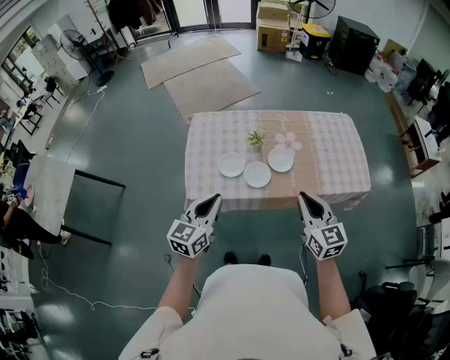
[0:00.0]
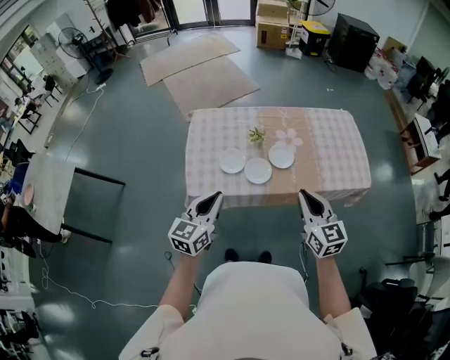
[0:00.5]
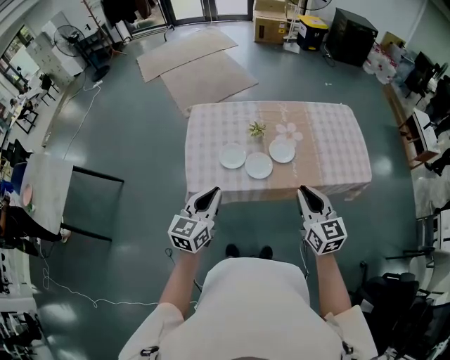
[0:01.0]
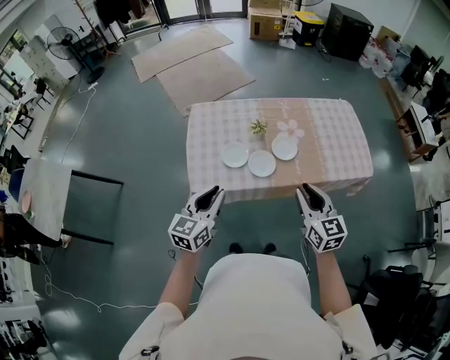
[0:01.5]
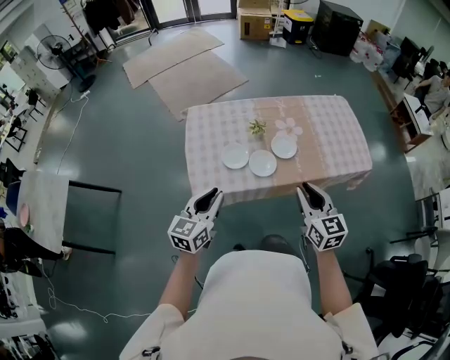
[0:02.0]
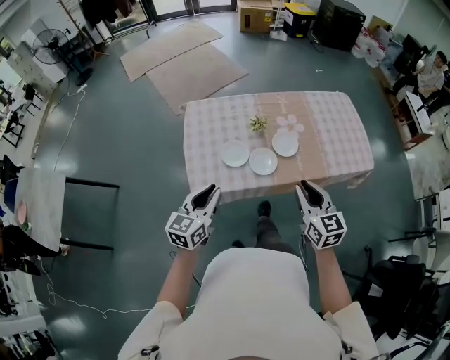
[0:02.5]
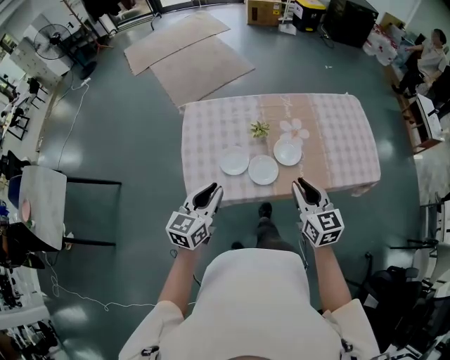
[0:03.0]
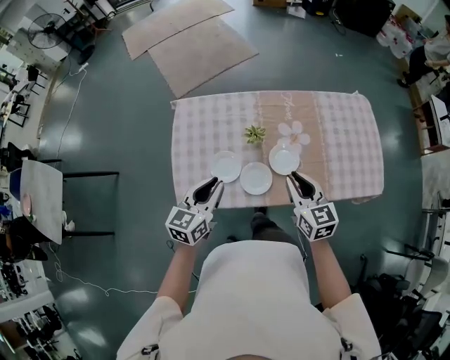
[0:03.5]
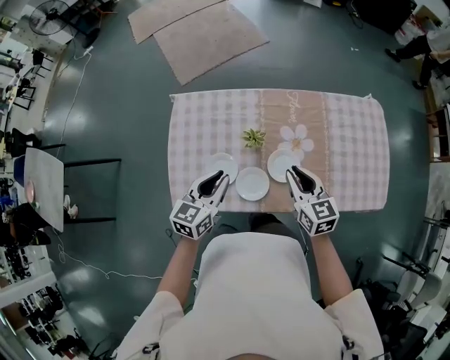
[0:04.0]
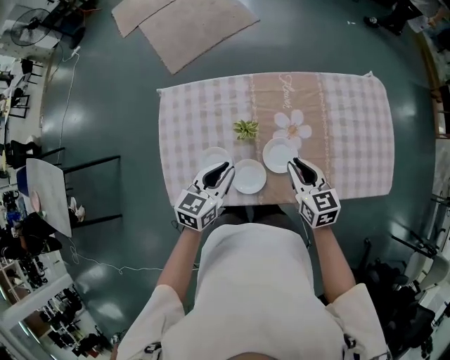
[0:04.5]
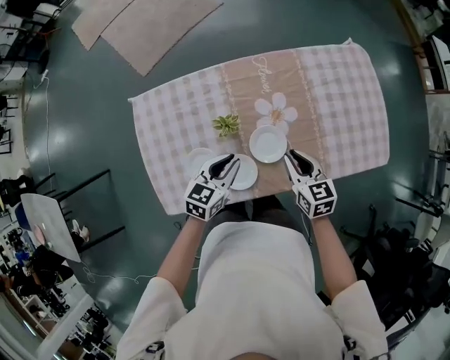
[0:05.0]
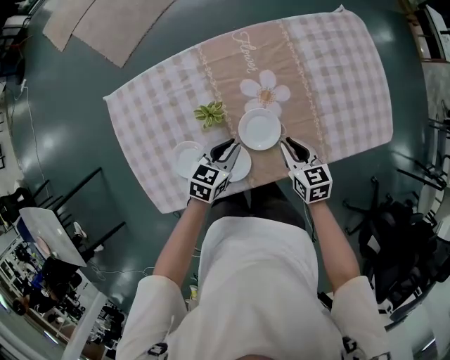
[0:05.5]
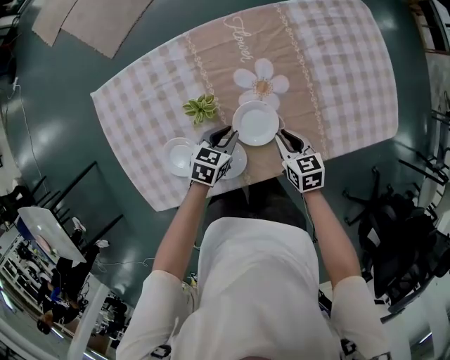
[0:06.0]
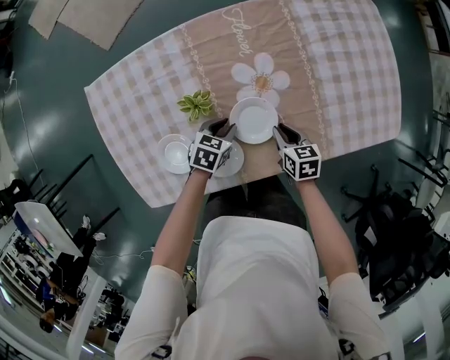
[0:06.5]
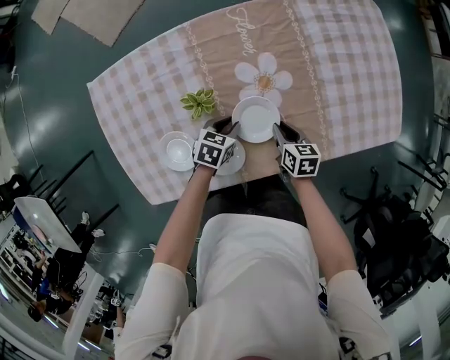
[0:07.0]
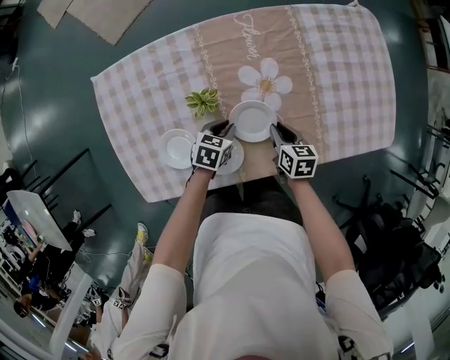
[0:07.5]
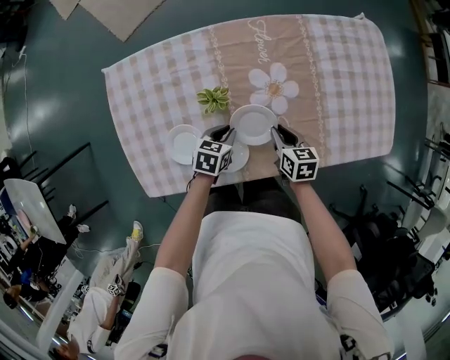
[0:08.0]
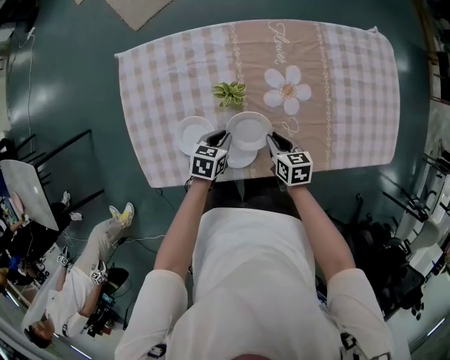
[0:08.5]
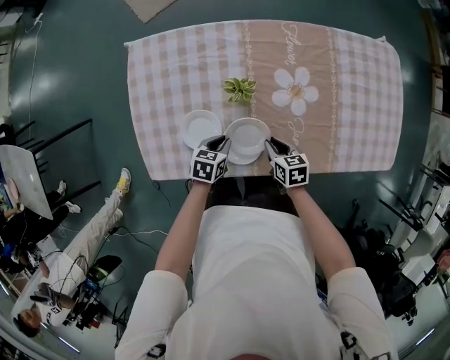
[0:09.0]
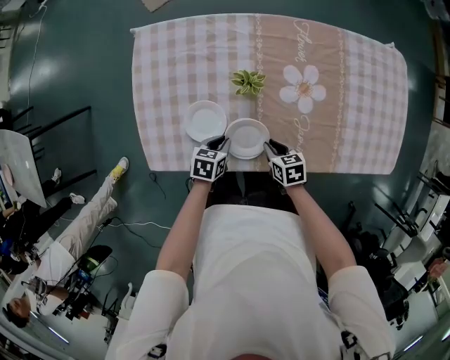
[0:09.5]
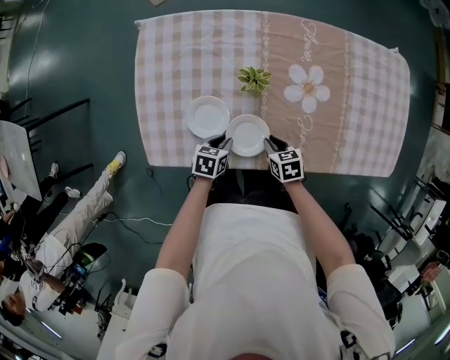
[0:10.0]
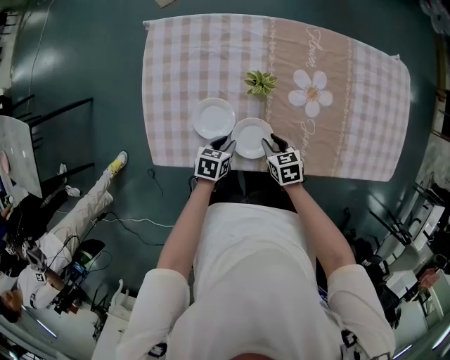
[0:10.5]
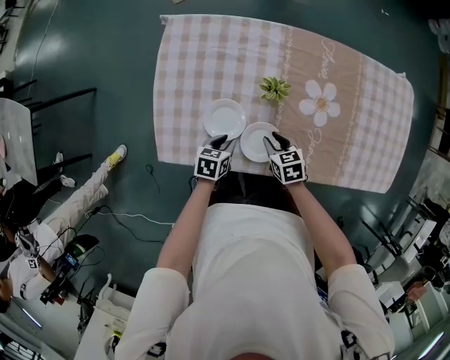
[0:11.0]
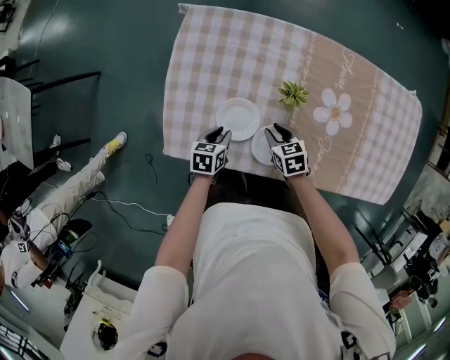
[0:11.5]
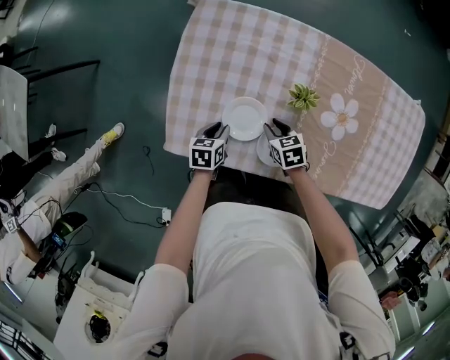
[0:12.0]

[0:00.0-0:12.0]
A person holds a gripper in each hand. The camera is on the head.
0:00.0 to 0:02.0: Both grippers travel together to the left, approximately 5 cm.
0:02.0 to 0:04.0: Both grippers move forward, approximately 30 cm.
0:04.0 to 0:06.0: The left gripper heads downward and to the right, covering approximately 35 cm, and rotates roughly 40 degrees. The right gripper is displaced downward by some 25 cm, and rotates approximately 30 degrees.
0:06.0 to 0:08.0: There are only small adjustments of the grippers.
0:08.0 to 0:10.0: The right gripper goes some 15 cm to the left and backward, and swivels approximately 30 degrees. Meanwhile the left gripper shifts some 15 cm backward and to the left.
0:10.0 to 0:12.0: The right gripper moves to the left and forward, approximately 15 cm. The left gripper travels to the left by about 15 cm, and changes its angle by approximately 20 degrees.

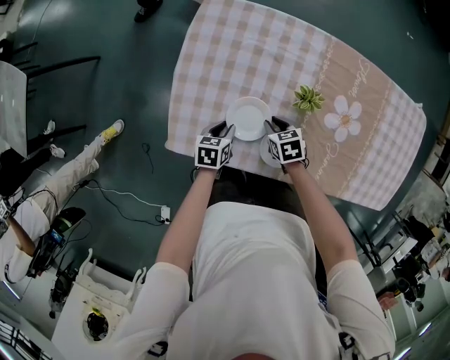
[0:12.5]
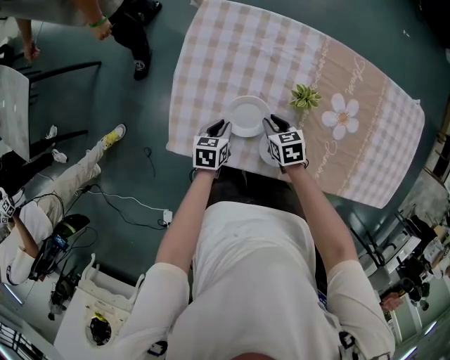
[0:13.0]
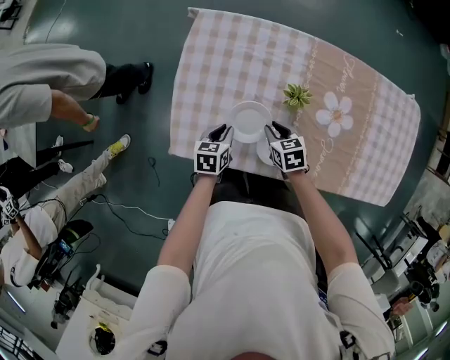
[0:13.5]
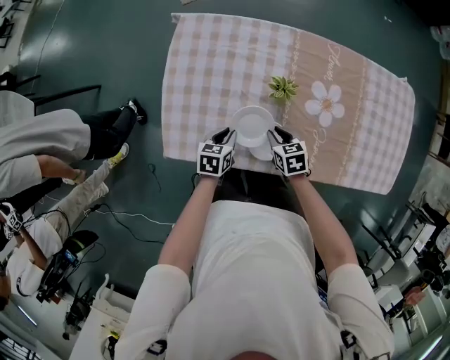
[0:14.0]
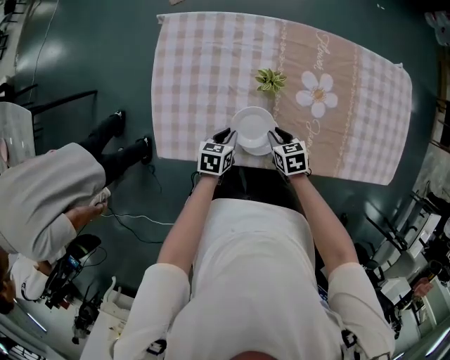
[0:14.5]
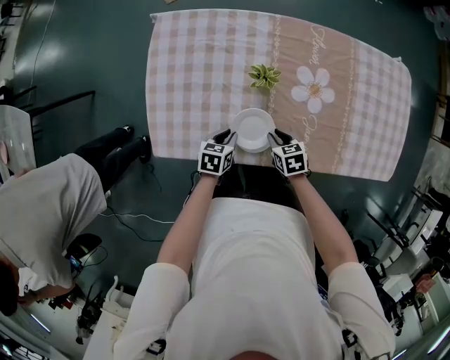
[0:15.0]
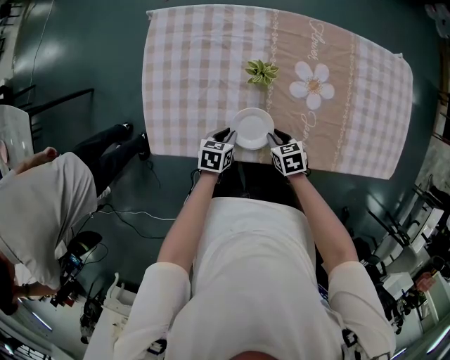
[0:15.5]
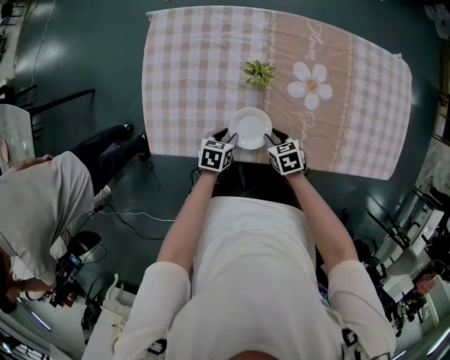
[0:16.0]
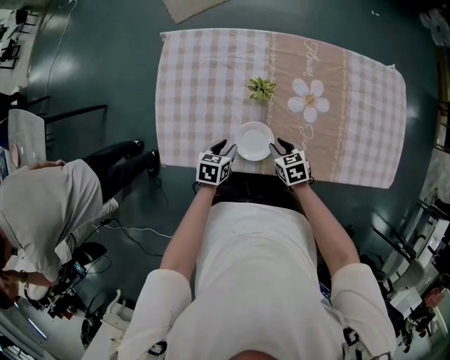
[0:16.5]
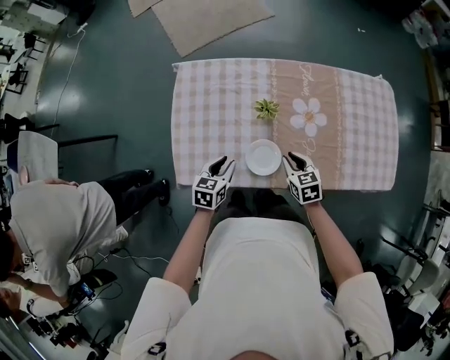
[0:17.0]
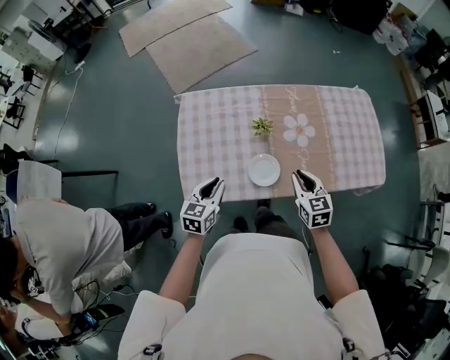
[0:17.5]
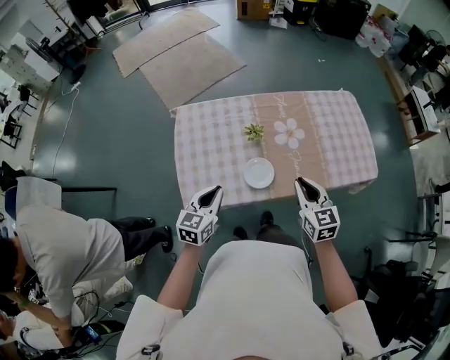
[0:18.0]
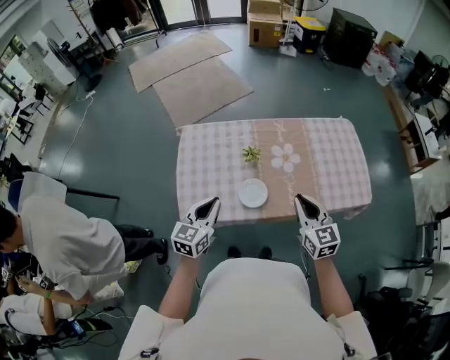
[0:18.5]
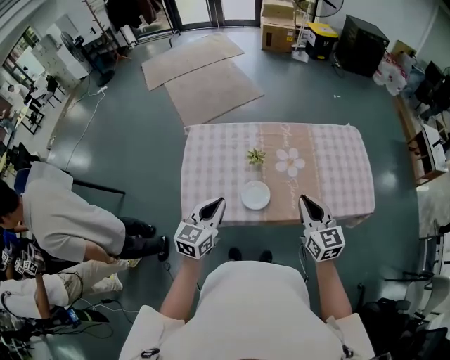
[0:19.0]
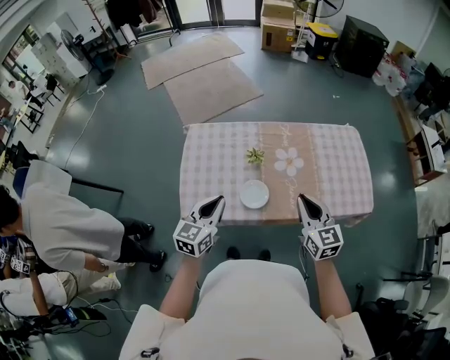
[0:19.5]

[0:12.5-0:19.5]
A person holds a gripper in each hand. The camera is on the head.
0:12.5 to 0:14.5: The right gripper heads to the right and backward, covering roughly 15 cm, while the left gripper heads to the right, covering approximately 10 cm.
0:14.5 to 0:16.0: The left gripper ends up roughly 5 cm from where it was.
0:16.0 to 0:17.5: The right gripper travels upward by some 25 cm, and swivels approximately 40 degrees. The left gripper heads upward and to the left, covering some 30 cm, and changes its angle by approximately 40 degrees.
0:17.5 to 0:19.5: The right gripper is displaced upward and backward by approximately 20 cm, while the left gripper moves upward and to the right, some 15 cm.

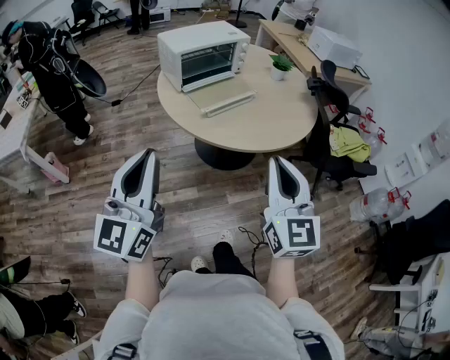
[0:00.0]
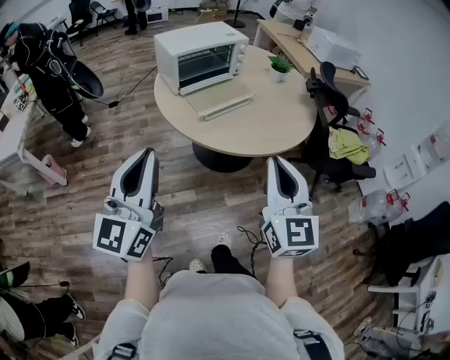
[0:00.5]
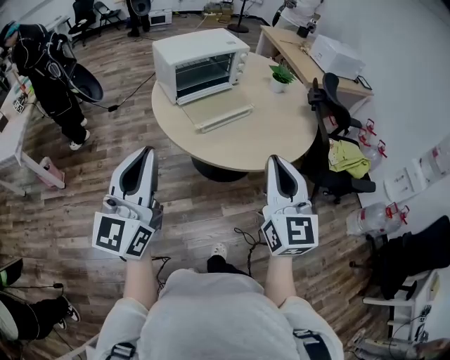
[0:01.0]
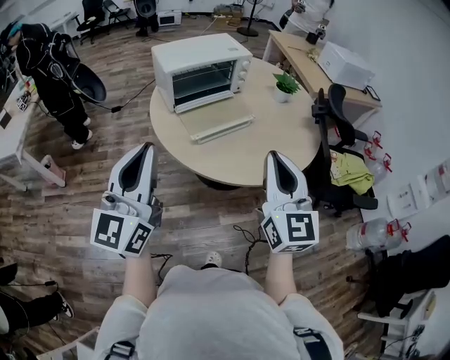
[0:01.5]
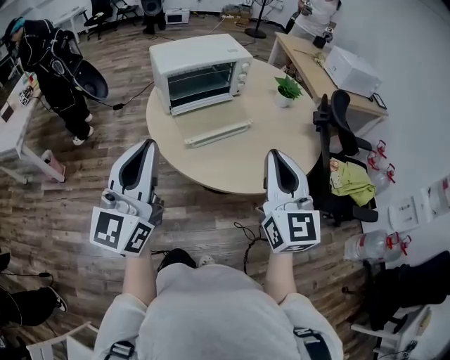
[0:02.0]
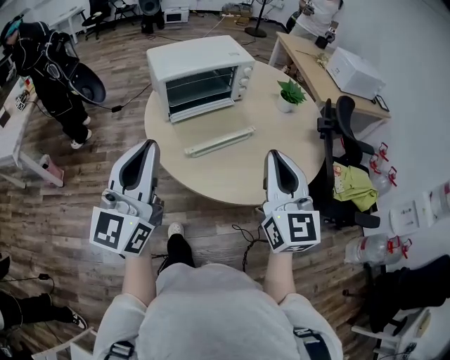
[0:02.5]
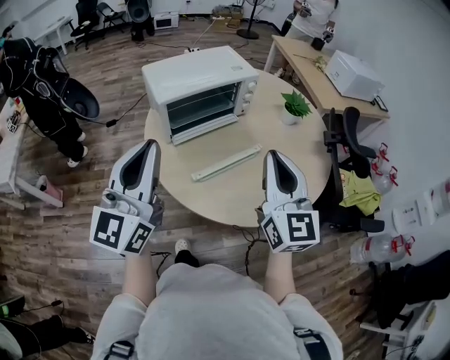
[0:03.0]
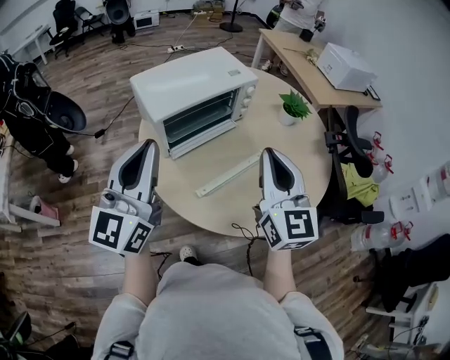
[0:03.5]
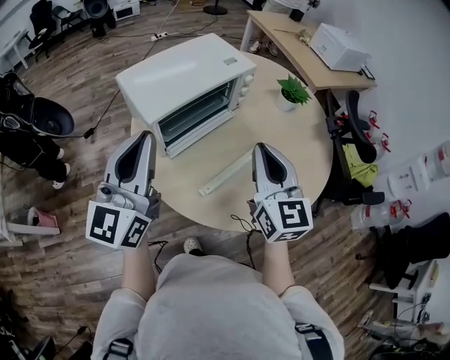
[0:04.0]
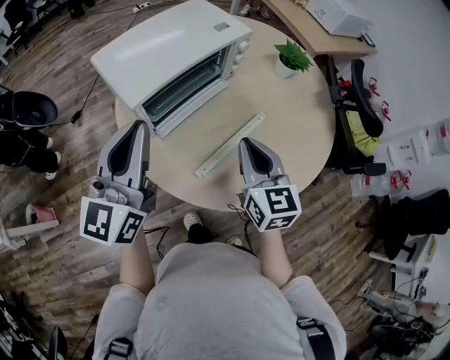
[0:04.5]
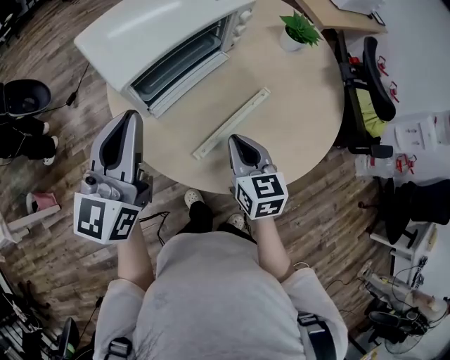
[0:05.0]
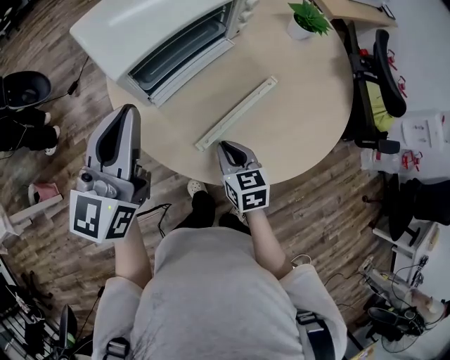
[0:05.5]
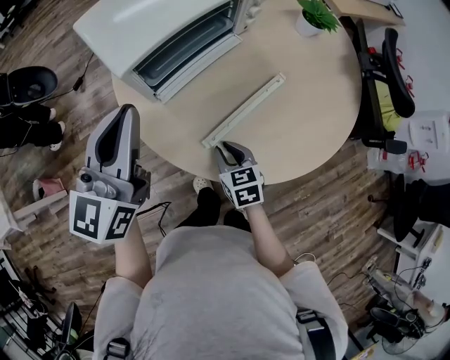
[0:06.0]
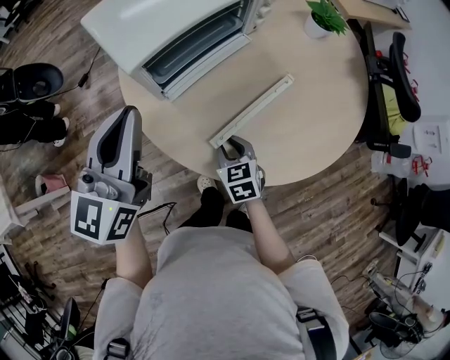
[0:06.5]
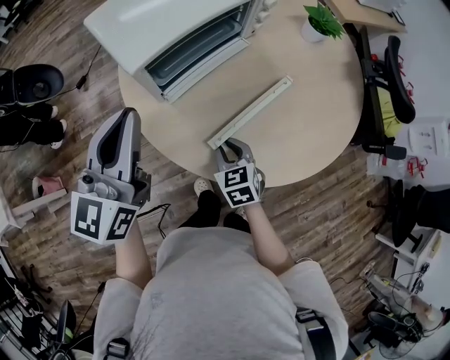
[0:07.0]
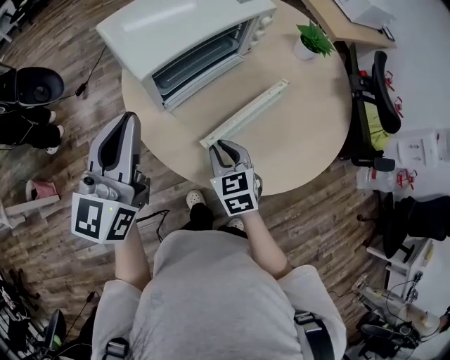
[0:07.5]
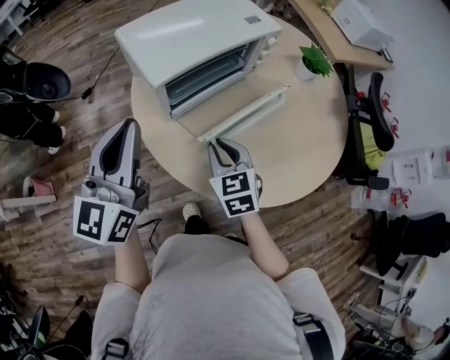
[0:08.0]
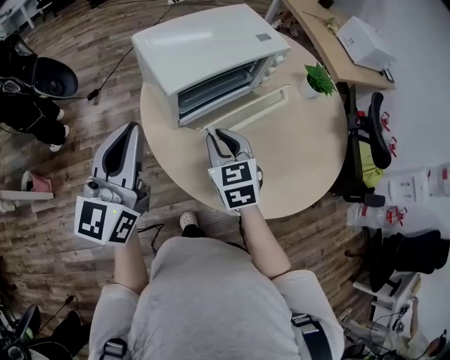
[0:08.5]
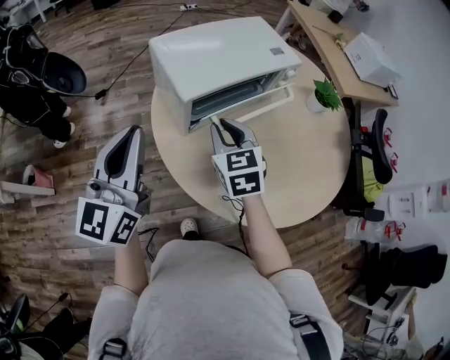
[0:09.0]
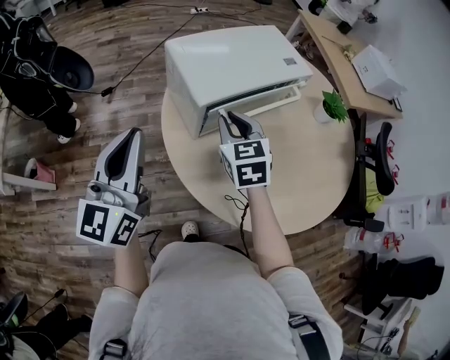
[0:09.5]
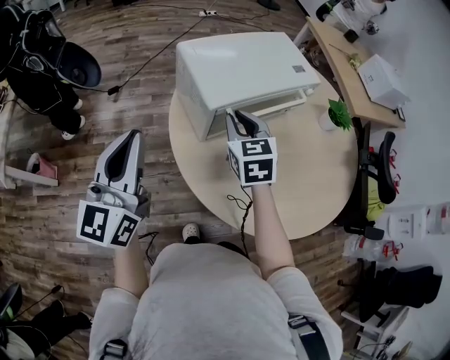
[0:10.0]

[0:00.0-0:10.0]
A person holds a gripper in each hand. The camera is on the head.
0:00.0 to 0:02.0: The right gripper travels forward by approximately 20 cm, while the left gripper travels forward and to the right by roughly 20 cm.
0:02.0 to 0:04.0: The two grippers go about 30 cm forward and to the left.
0:04.0 to 0:06.0: The left gripper goes about 10 cm downward. Meanwhile the right gripper shifts some 35 cm downward, and tips its fingers downward by some 40 degrees.
0:06.0 to 0:08.0: The right gripper is displaced upward by about 15 cm. The left gripper heads to the left, covering about 5 cm.
0:08.0 to 0:10.0: The left gripper is displaced to the left by some 10 cm. Meanwhile the right gripper travels forward, upward and to the left by approximately 15 cm.
